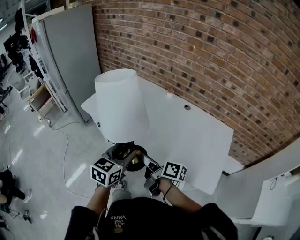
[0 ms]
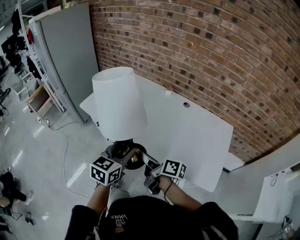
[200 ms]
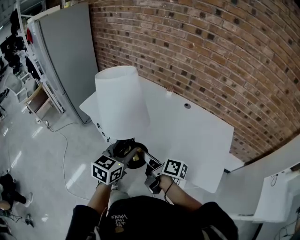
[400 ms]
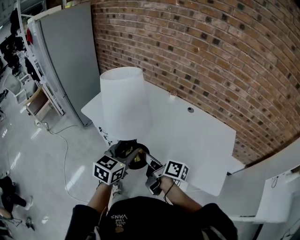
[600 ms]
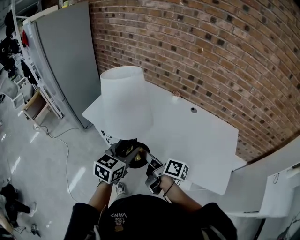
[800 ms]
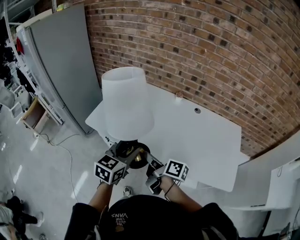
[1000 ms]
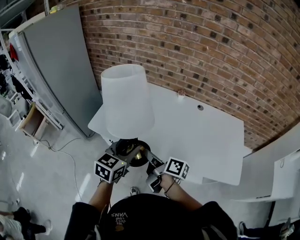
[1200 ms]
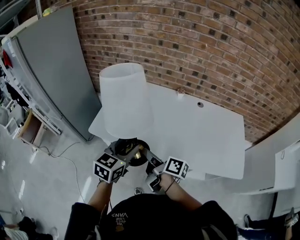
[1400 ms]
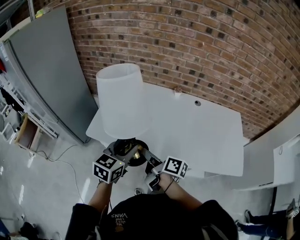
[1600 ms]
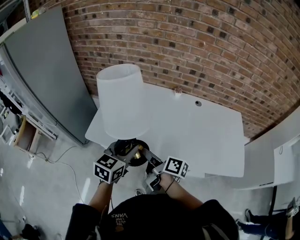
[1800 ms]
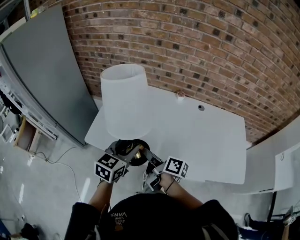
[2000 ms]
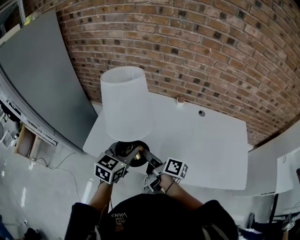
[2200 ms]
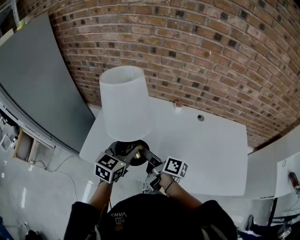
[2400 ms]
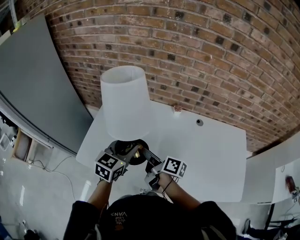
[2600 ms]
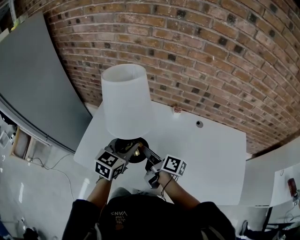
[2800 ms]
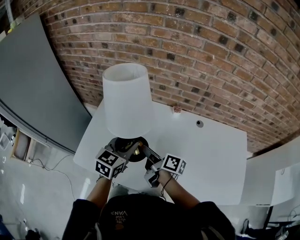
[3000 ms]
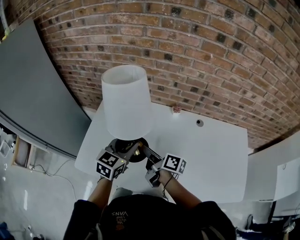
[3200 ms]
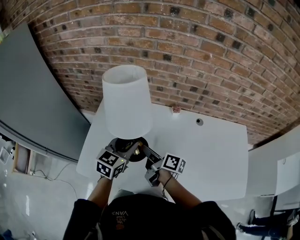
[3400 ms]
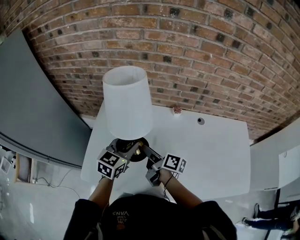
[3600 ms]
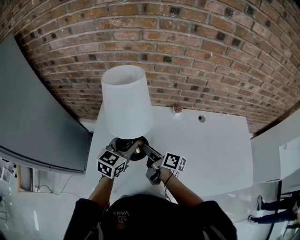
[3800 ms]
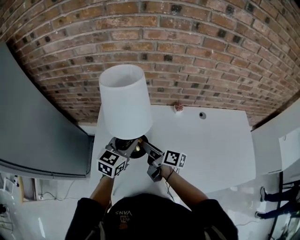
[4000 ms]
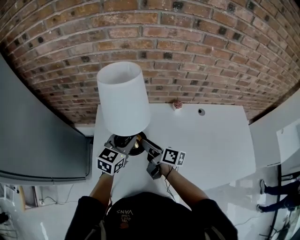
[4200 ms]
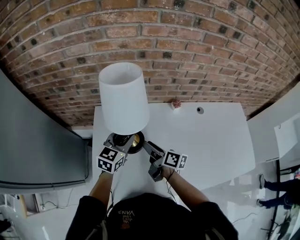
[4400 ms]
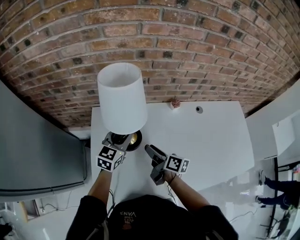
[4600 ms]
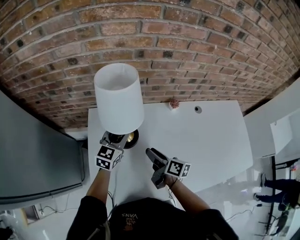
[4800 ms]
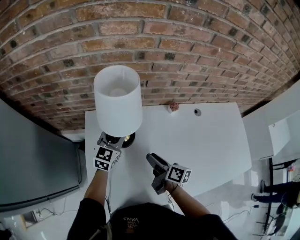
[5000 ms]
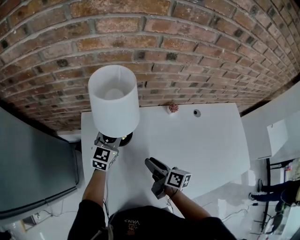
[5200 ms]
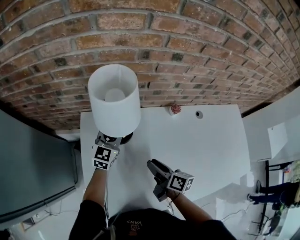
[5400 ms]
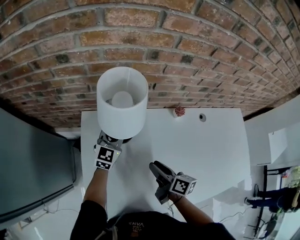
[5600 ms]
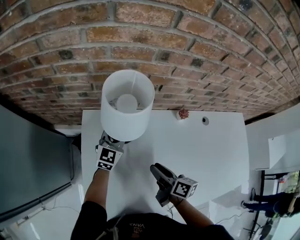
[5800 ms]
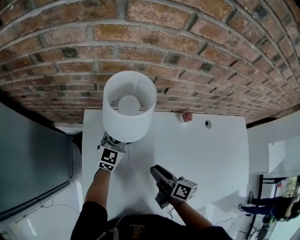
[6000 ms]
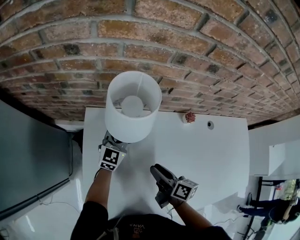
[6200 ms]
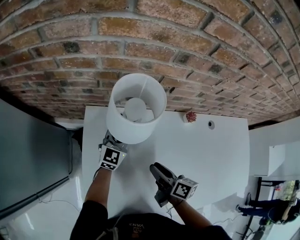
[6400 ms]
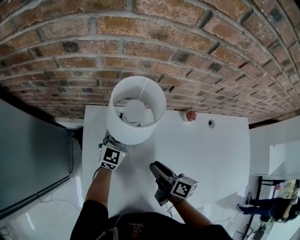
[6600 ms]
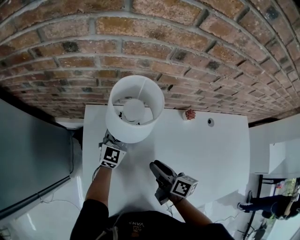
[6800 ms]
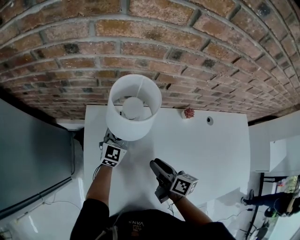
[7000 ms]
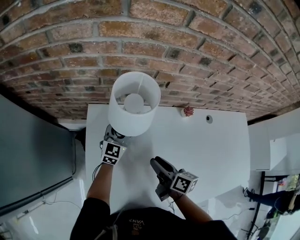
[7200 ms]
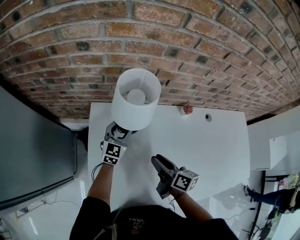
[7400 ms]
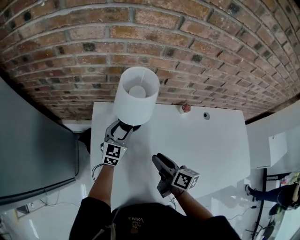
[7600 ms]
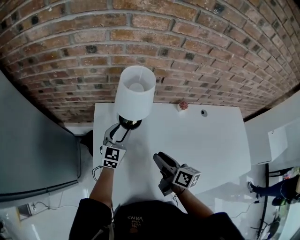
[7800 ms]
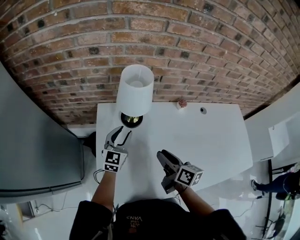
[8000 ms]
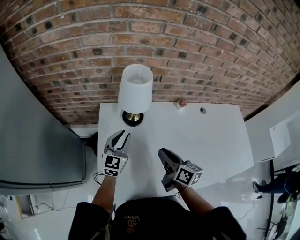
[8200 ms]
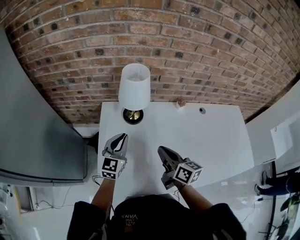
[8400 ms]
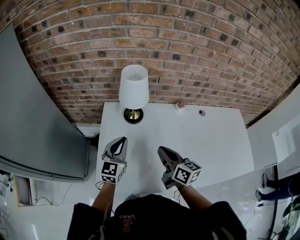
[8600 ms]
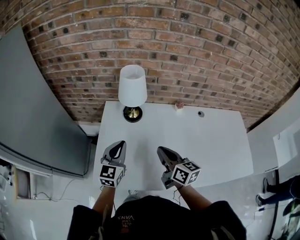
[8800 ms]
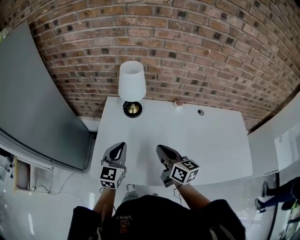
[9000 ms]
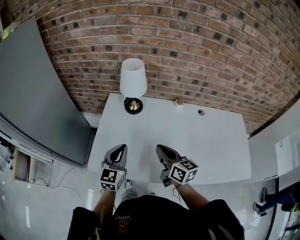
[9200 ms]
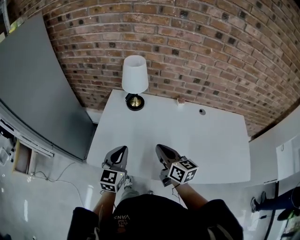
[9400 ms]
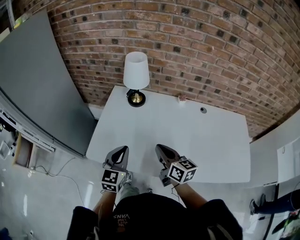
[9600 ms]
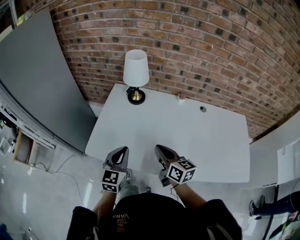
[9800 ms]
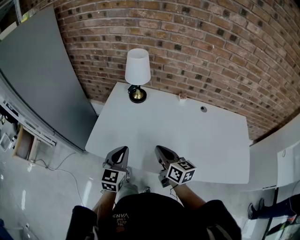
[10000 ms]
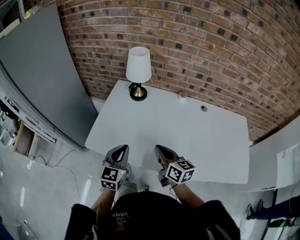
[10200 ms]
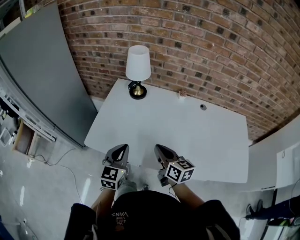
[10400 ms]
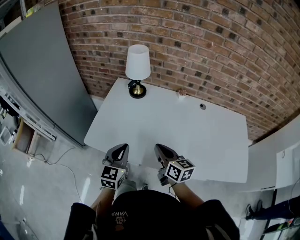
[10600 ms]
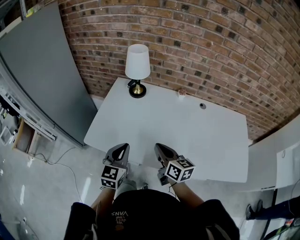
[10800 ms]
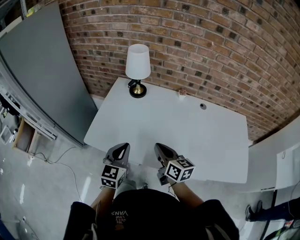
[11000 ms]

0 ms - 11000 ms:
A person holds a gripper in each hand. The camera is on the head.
0 ms - 1600 ms: Both grippers move to the left and forward, some 25 cm. The right gripper turns by approximately 20 degrees.
1600 ms - 3200 ms: The two grippers go roughly 25 cm forward.
3200 ms - 4800 ms: The right gripper shifts roughly 10 cm forward, to the left and downward, and rotates roughly 20 degrees. The left gripper is displaced forward and to the left by approximately 20 cm.
4800 ms - 6200 ms: The left gripper shifts approximately 15 cm forward and downward.
6200 ms - 7800 ms: The left gripper shifts some 10 cm backward, and opens; the right gripper moves upward and backward, some 10 cm.
7800 ms - 9400 ms: The right gripper is displaced backward and upward by about 15 cm, changes its angle by roughly 30 degrees, and closes. The left gripper moves backward, roughly 30 cm, and closes its fingers.
9400 ms - 11000 ms: The two grippers go some 10 cm backward.

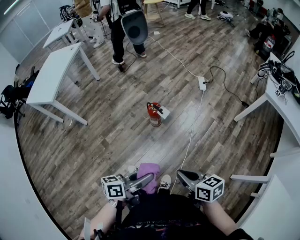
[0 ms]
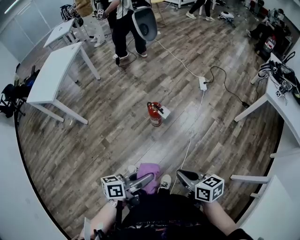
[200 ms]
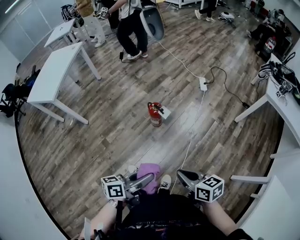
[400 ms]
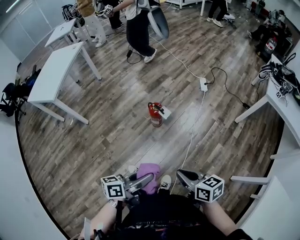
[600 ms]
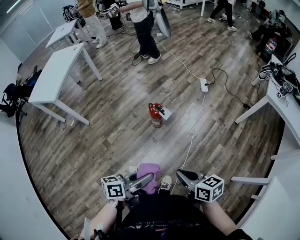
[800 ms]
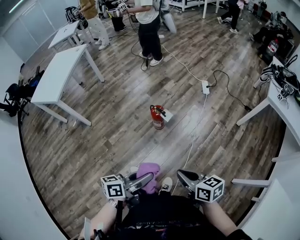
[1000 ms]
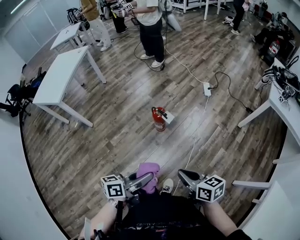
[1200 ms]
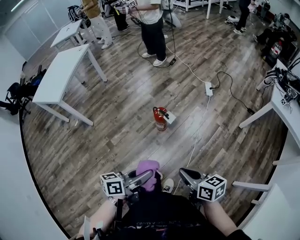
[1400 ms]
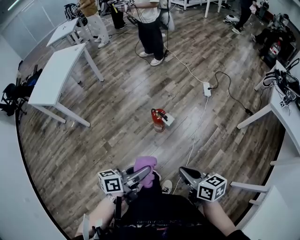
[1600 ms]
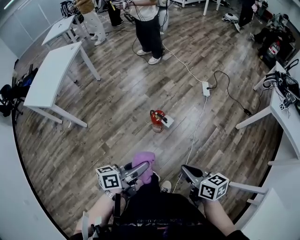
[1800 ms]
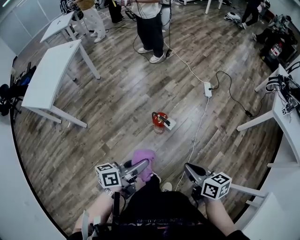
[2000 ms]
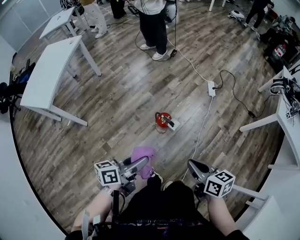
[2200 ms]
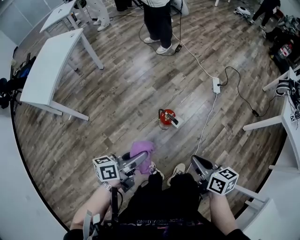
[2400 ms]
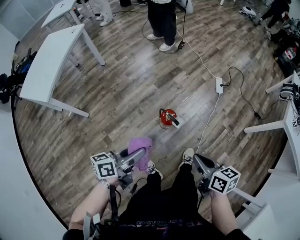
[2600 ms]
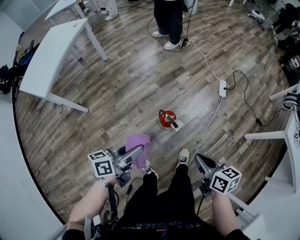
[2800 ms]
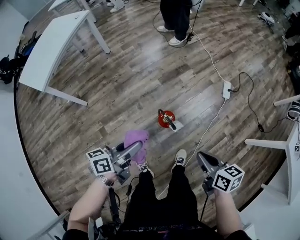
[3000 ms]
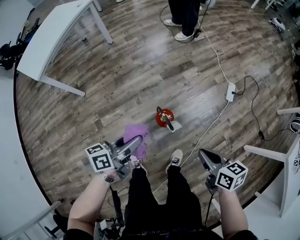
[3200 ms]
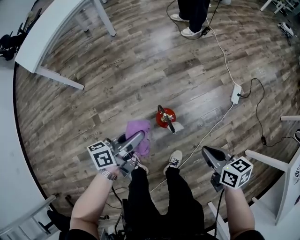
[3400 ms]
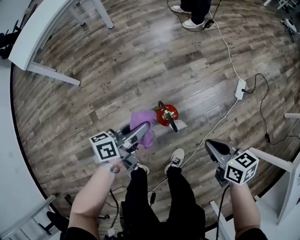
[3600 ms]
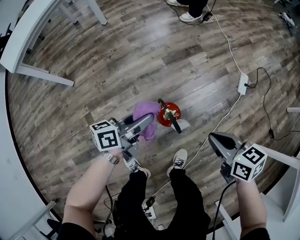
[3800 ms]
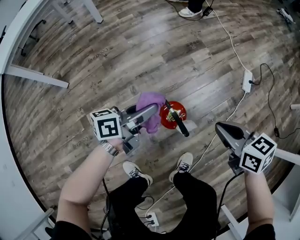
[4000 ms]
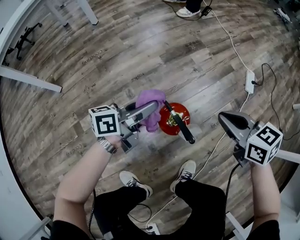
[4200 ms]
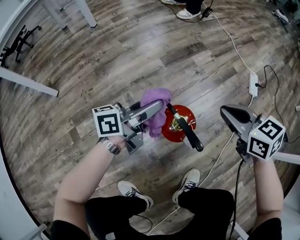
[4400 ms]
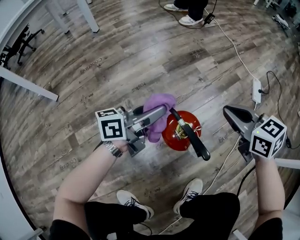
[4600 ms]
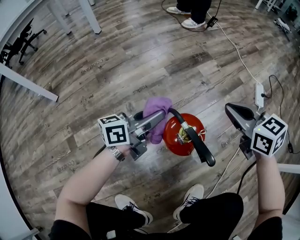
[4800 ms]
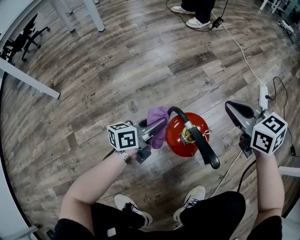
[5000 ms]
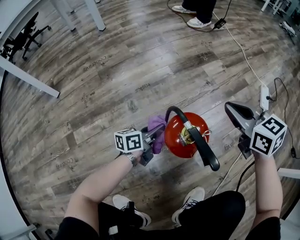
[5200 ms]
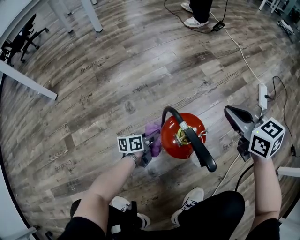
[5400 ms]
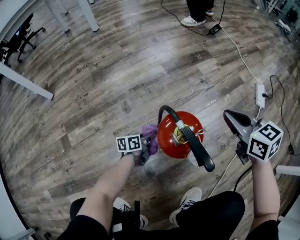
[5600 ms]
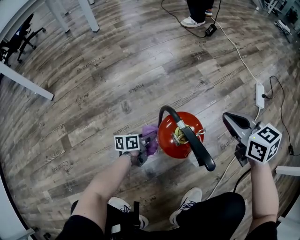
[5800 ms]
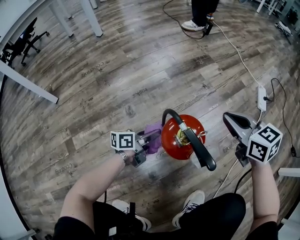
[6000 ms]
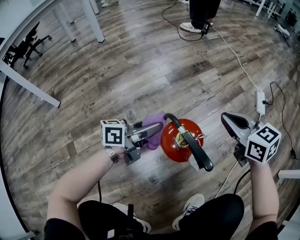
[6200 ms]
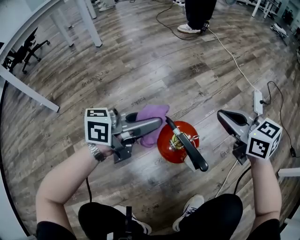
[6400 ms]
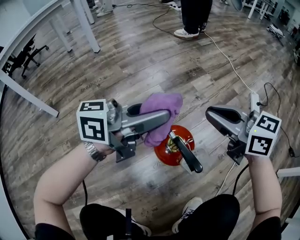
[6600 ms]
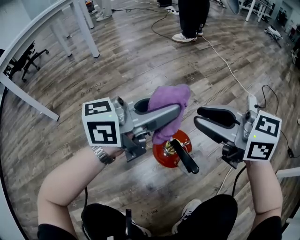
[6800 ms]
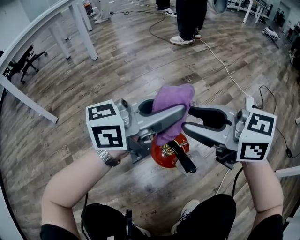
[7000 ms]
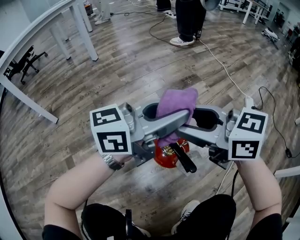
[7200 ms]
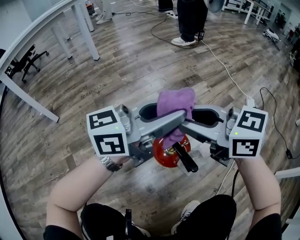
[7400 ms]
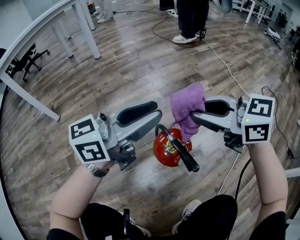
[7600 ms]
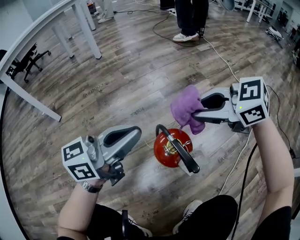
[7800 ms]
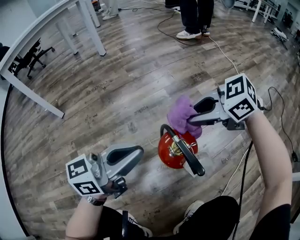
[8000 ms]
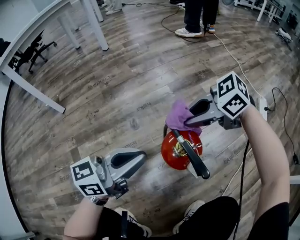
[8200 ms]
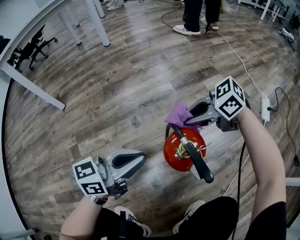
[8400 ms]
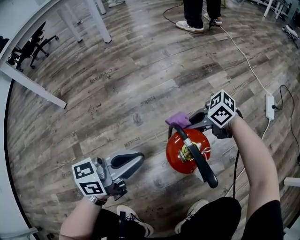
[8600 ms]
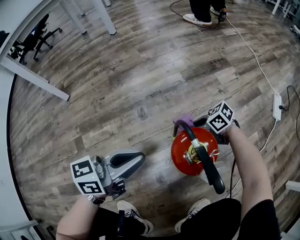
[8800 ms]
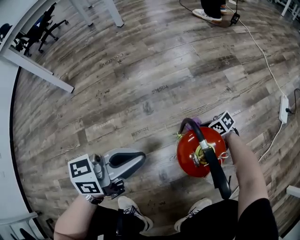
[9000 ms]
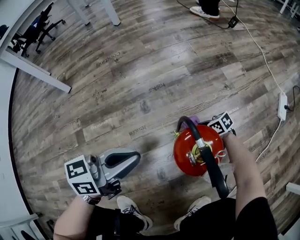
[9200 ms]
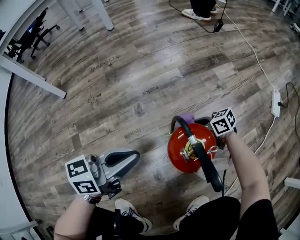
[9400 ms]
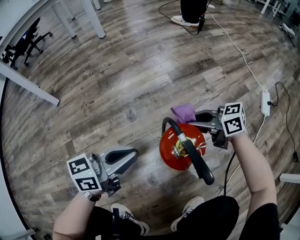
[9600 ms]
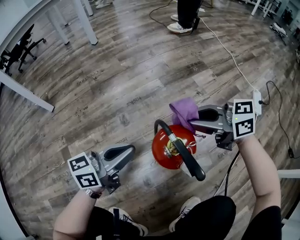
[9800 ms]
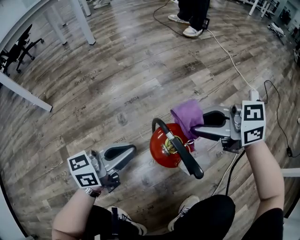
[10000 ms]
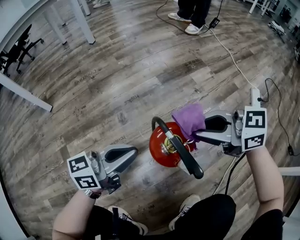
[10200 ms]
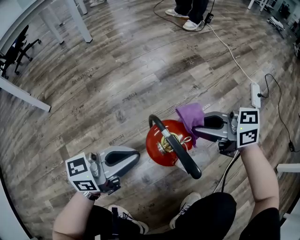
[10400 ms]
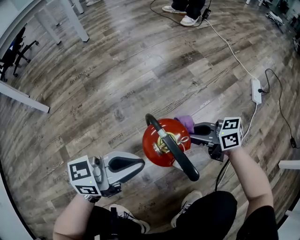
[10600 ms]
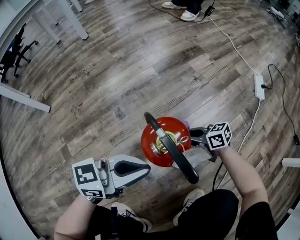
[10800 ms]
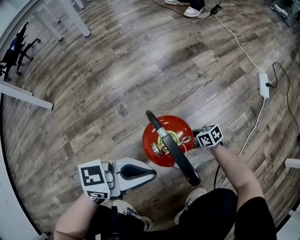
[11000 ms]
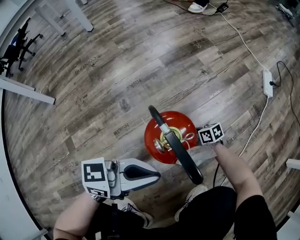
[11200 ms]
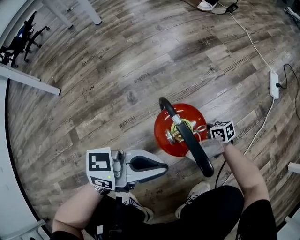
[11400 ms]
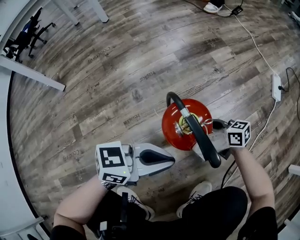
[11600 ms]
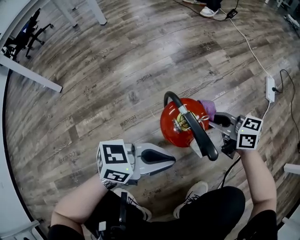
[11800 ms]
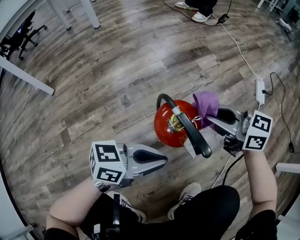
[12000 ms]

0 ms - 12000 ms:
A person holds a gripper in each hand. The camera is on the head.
0 ms - 1600 ms: The two grippers go about 10 cm forward.
1600 ms - 3000 ms: The grippers both shift forward by about 25 cm.
3000 ms - 4400 ms: Both grippers move downward and forward, some 40 cm. The right gripper rotates roughly 30 degrees.
4400 ms - 6000 ms: The left gripper travels downward by approximately 25 cm; the right gripper moves downward, about 10 cm.
6000 ms - 7600 ms: The right gripper moves upward, some 15 cm, changes its angle by some 30 degrees, and opens. Meanwhile the left gripper goes about 35 cm upward, and turns by roughly 40 degrees.
7600 ms - 9000 ms: The right gripper goes roughly 50 cm downward, and swivels about 40 degrees. Meanwhile the left gripper goes approximately 15 cm downward, swivels roughly 20 degrees, and closes.
9000 ms - 10400 ms: The left gripper shifts by about 5 cm. The right gripper moves upward, approximately 30 cm, and turns by approximately 40 degrees.
10400 ms - 12000 ms: The right gripper reaches approximately 35 cm downward, then returns. Meanwhile the left gripper shifts by about 10 cm, and rotates some 20 degrees.

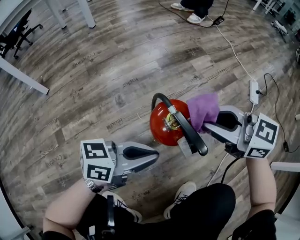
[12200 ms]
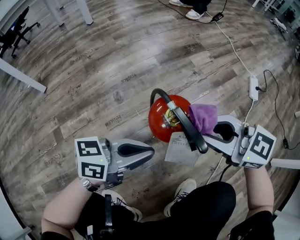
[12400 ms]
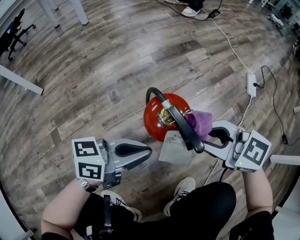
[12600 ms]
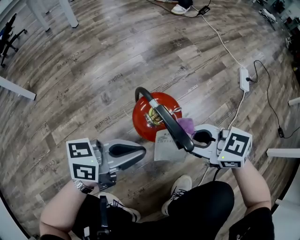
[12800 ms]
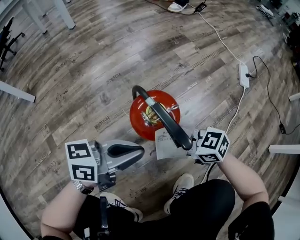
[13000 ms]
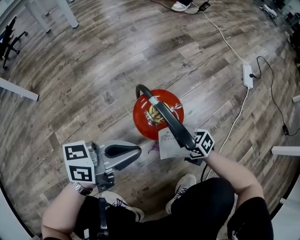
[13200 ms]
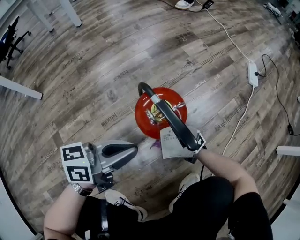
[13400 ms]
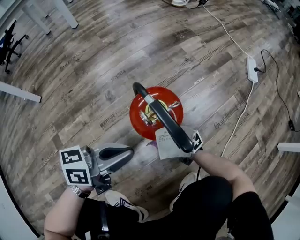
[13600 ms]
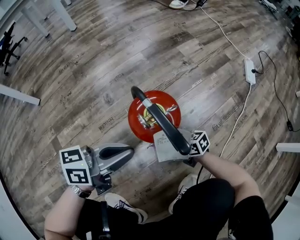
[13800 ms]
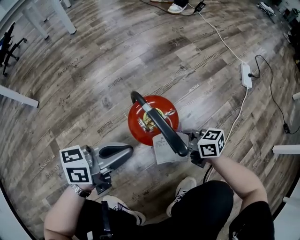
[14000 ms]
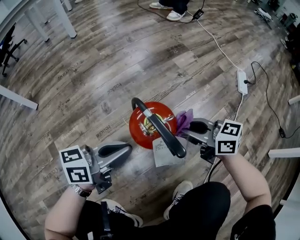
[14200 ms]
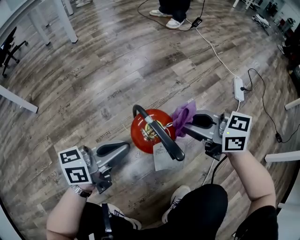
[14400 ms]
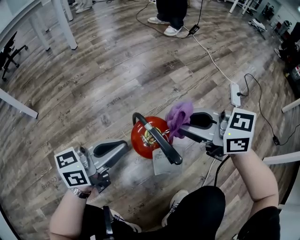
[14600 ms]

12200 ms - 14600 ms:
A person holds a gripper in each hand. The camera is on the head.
12200 ms - 13400 ms: The right gripper moves downward, some 35 cm, and turns by roughly 40 degrees.
13400 ms - 14600 ms: The left gripper changes place by approximately 10 cm. The right gripper goes roughly 35 cm upward, and swivels about 30 degrees.
